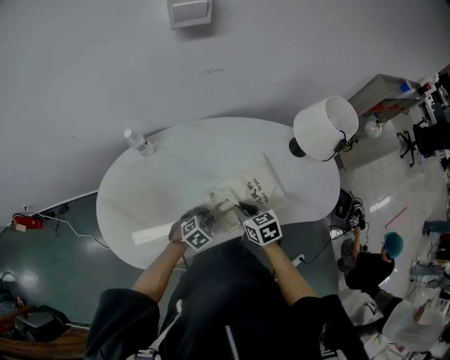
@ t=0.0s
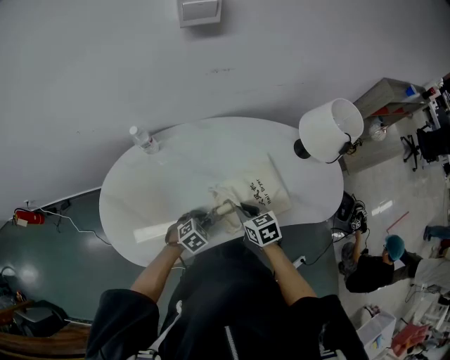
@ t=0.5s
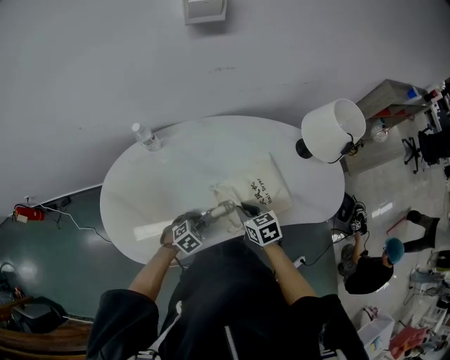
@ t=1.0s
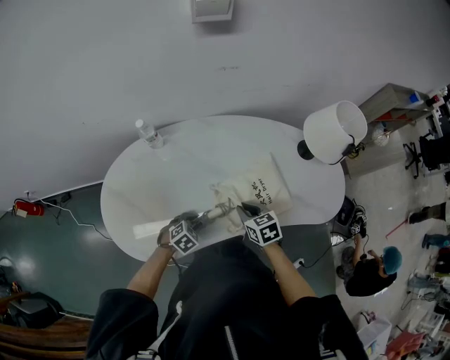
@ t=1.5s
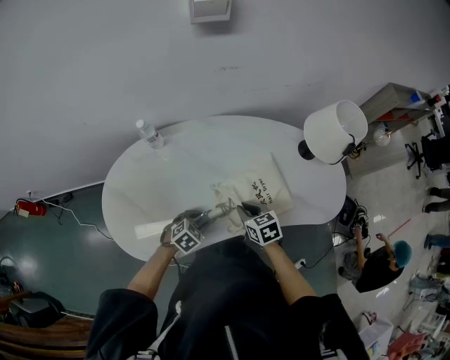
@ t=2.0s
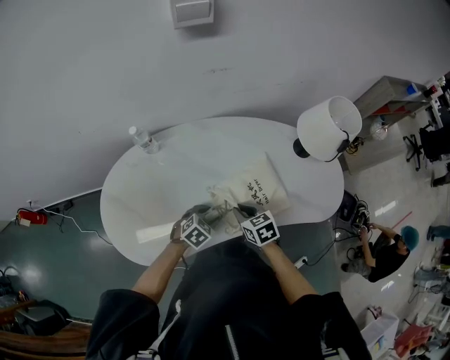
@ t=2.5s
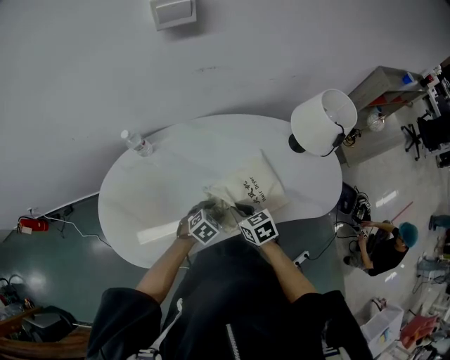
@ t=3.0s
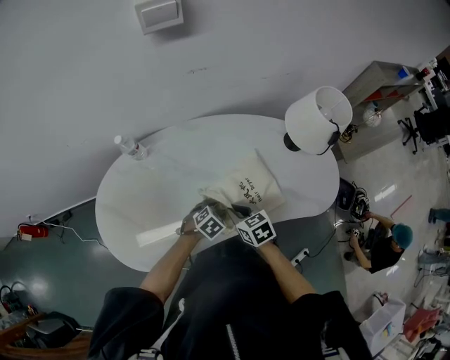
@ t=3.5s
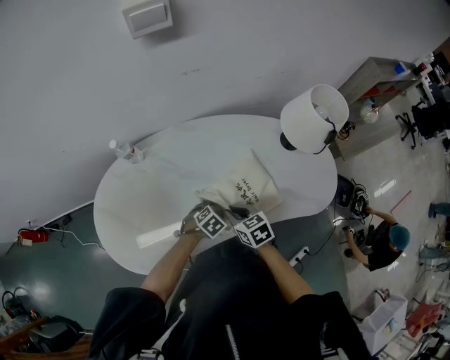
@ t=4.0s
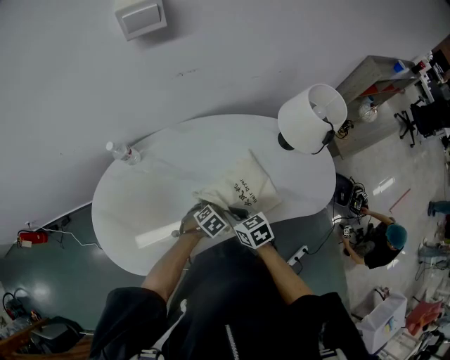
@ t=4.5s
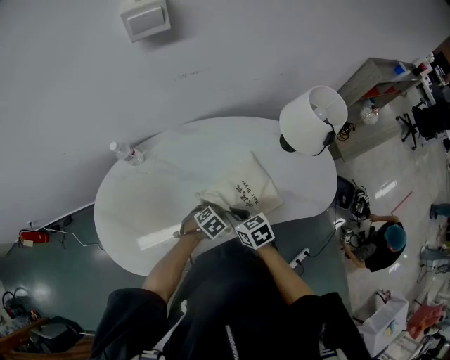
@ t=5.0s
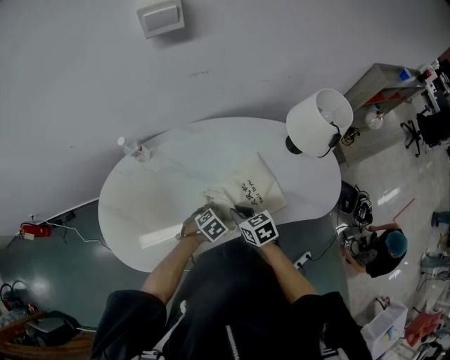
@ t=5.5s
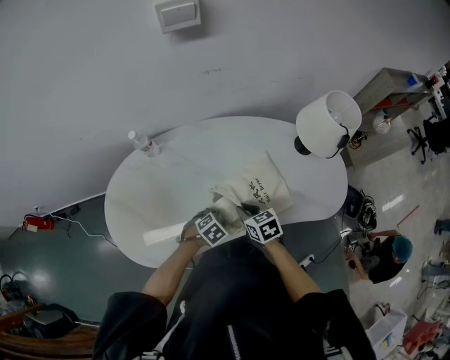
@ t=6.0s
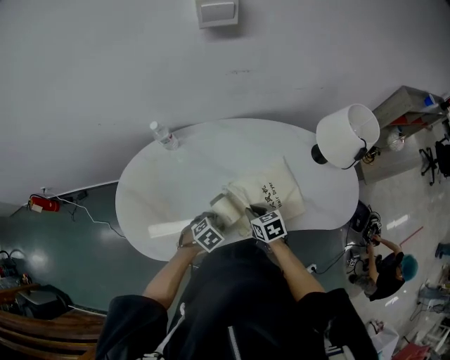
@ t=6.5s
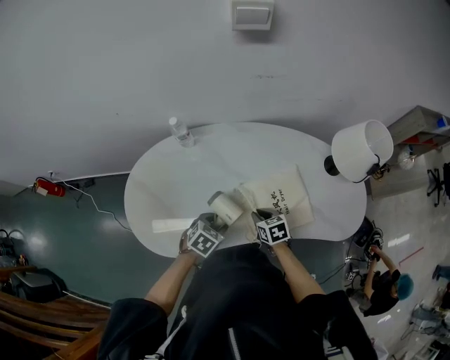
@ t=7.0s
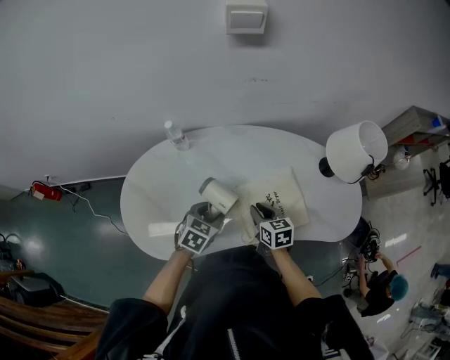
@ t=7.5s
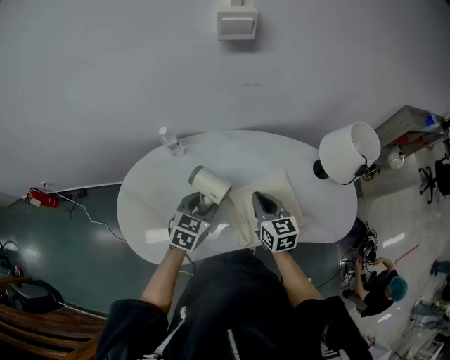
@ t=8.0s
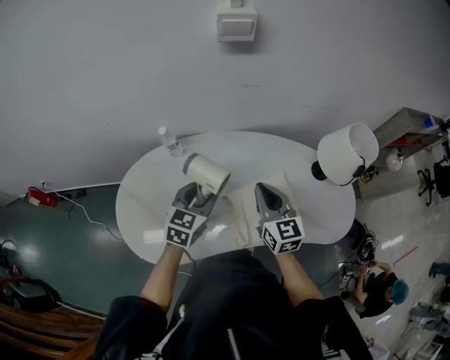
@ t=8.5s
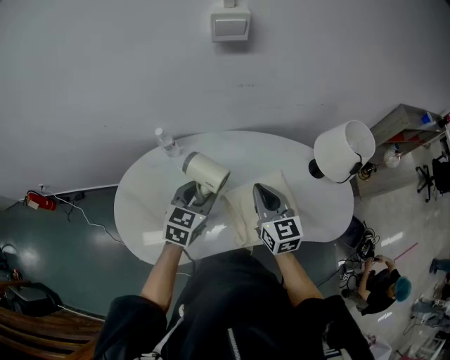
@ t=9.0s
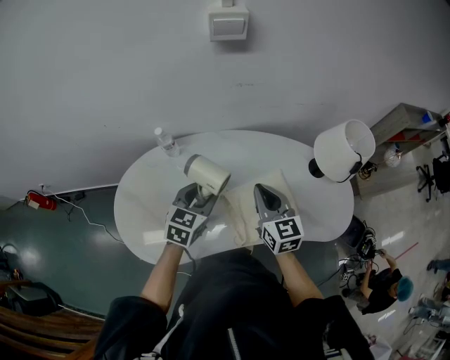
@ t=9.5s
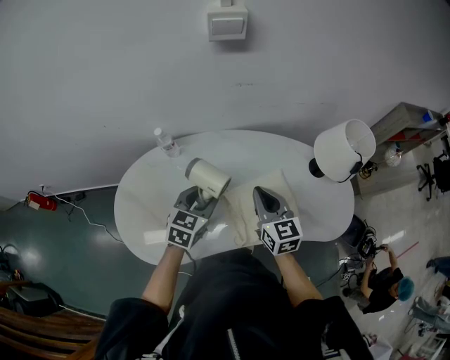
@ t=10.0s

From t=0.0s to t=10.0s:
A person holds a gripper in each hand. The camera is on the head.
From t=0.0s to t=2.0s: The left gripper ends up about 5 cm from where it was.
From t=2.0s to t=4.0s: The left gripper shifts approximately 10 cm to the right and forward.
From t=4.0s to t=6.0s: The left gripper ends up roughly 5 cm from where it was.
From t=6.0s to t=8.0s: The right gripper moves upward and forward, approximately 15 cm, and changes its angle by some 30 degrees. Meanwhile the left gripper heads upward, to the left and forward, covering roughly 20 cm, and points its fingers roughly 30 degrees further upward.
From t=8.0s to t=10.0s: The right gripper shifts some 5 cm upward.

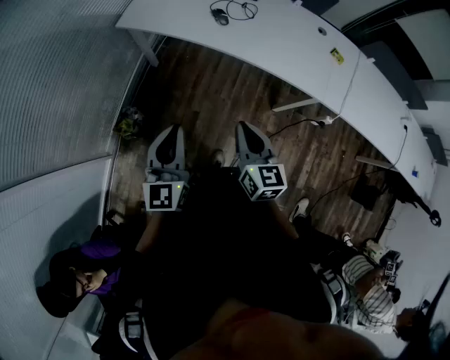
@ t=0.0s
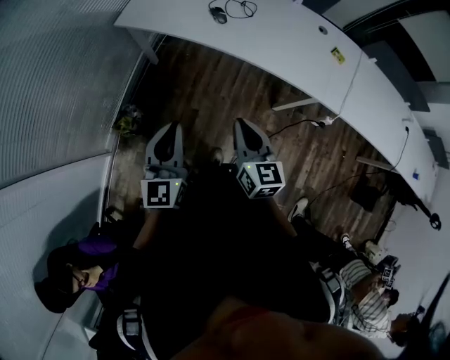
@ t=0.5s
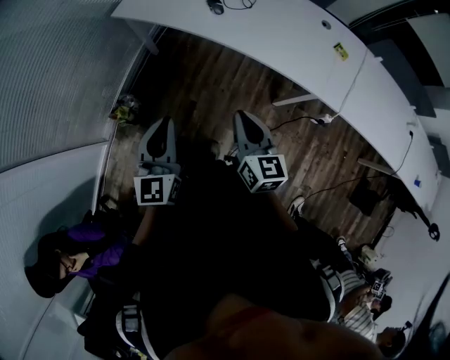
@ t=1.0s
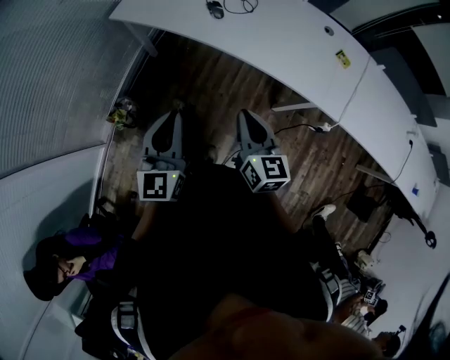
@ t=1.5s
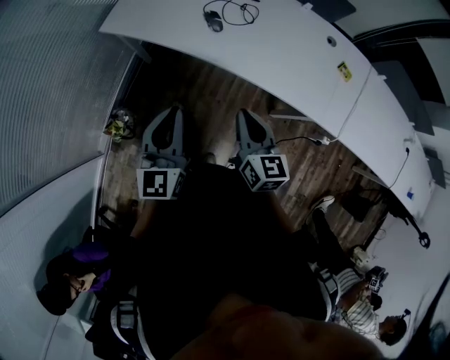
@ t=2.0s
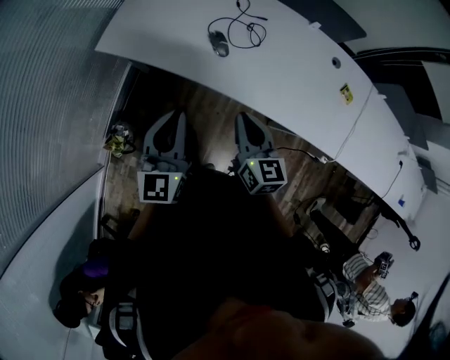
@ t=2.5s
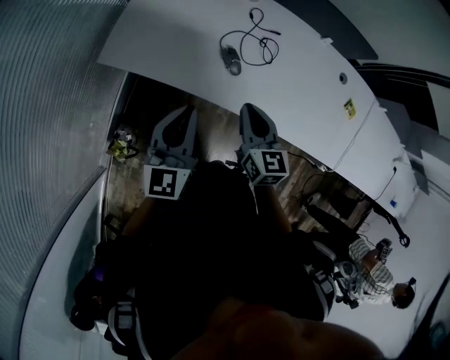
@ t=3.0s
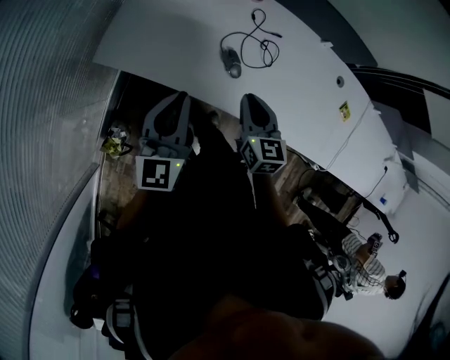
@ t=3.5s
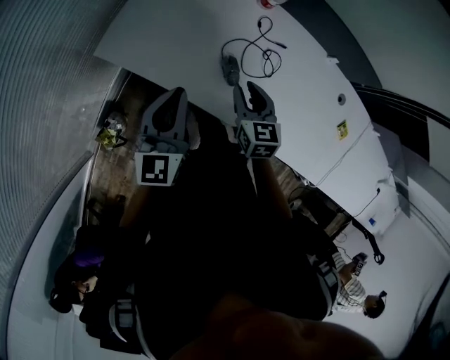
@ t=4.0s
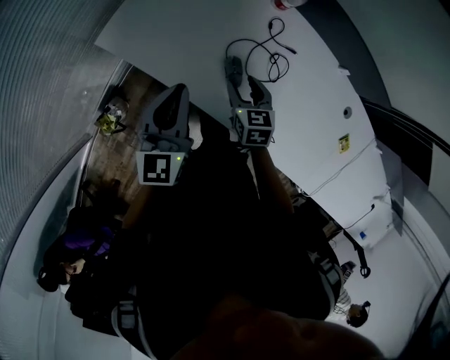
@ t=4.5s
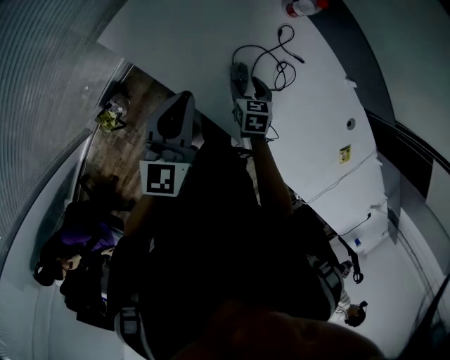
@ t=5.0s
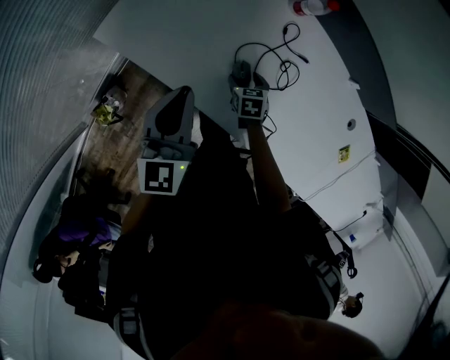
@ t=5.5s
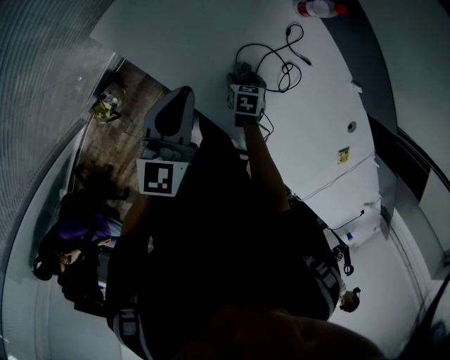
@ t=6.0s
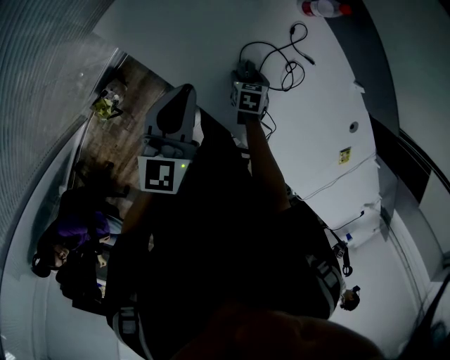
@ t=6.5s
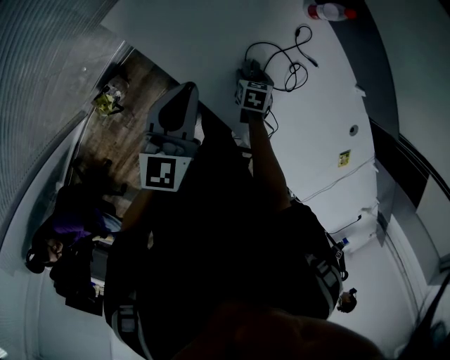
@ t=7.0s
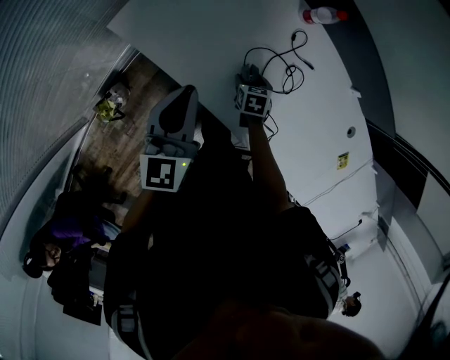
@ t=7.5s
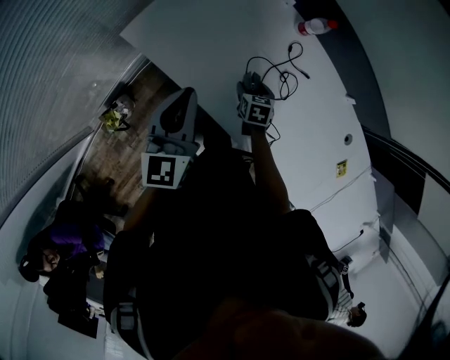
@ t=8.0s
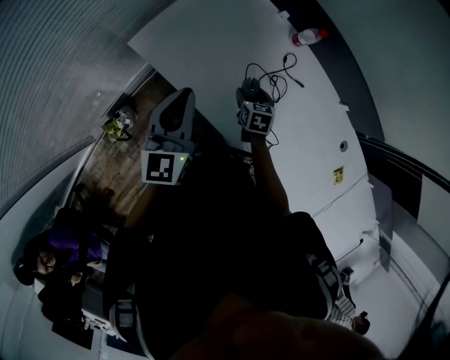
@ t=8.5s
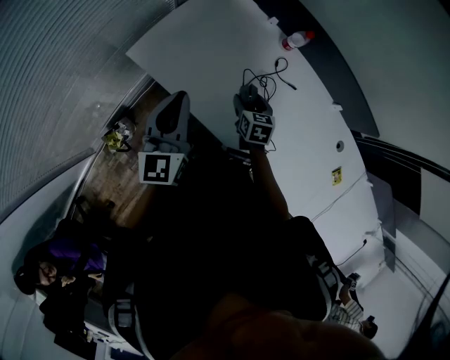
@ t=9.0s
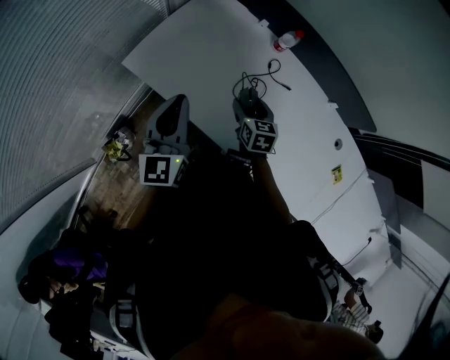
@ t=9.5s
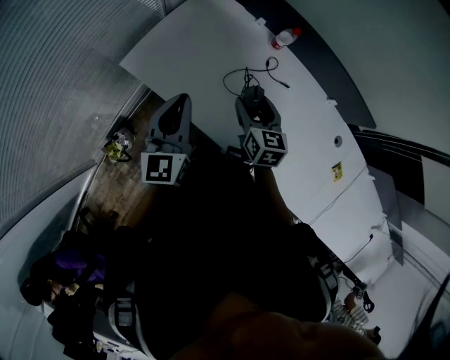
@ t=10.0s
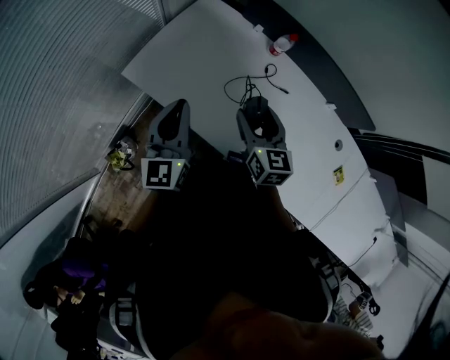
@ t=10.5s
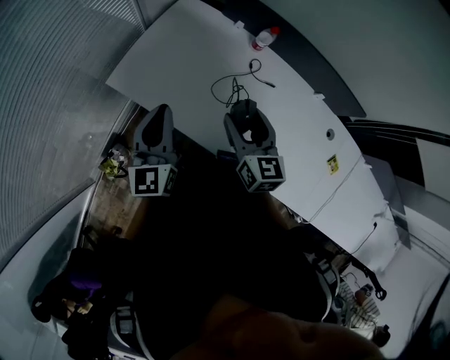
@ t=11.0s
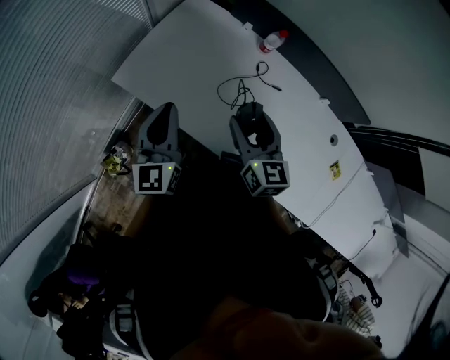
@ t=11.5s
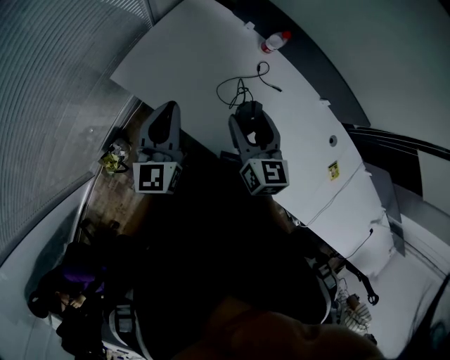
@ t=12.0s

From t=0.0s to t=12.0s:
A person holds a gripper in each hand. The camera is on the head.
From t=0.0s to t=2.0s: Both grippers move forward and to the right, about 20 cm.
From t=2.0s to t=4.0s: Both grippers move forward, approximately 35 cm. The right gripper turns by about 20 degrees, and opens its fingers.
From t=4.0s to t=6.0s: The left gripper travels forward and downward by roughly 10 cm; the right gripper shifts roughly 25 cm downward, tips its fingers downward by about 30 degrees, and opens up.
From t=6.0s to t=8.0s: The grippers both shift upward by roughly 5 cm.
From t=8.0s to t=10.0s: The left gripper heads upward, covering roughly 5 cm. Meanwhile the right gripper shifts roughly 25 cm upward, and rotates roughly 30 degrees.
From t=10.0s to t=12.0s: The right gripper goes roughly 5 cm upward.

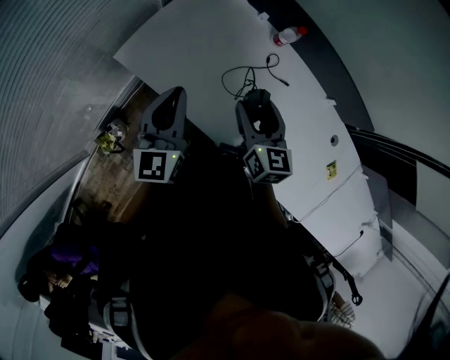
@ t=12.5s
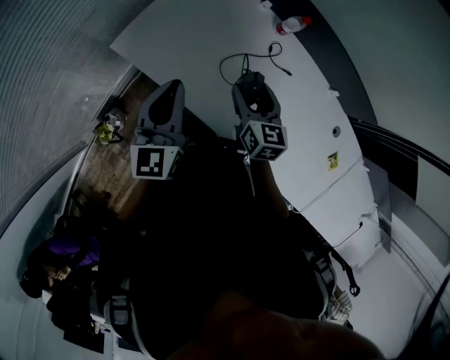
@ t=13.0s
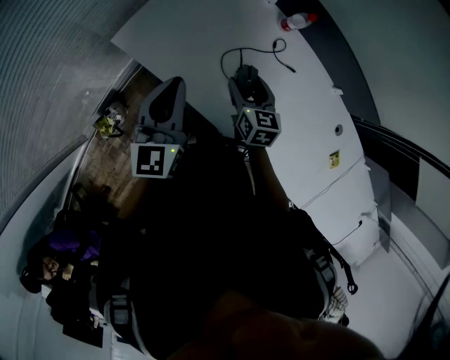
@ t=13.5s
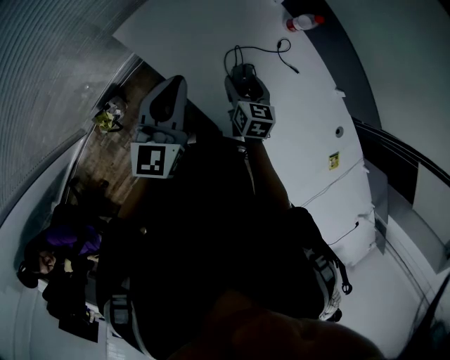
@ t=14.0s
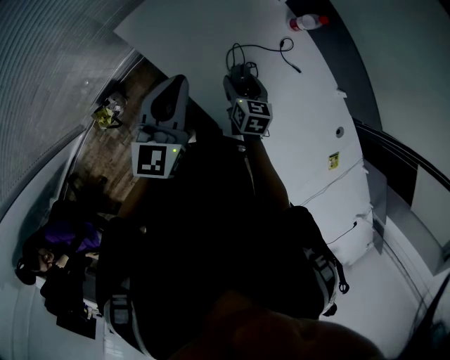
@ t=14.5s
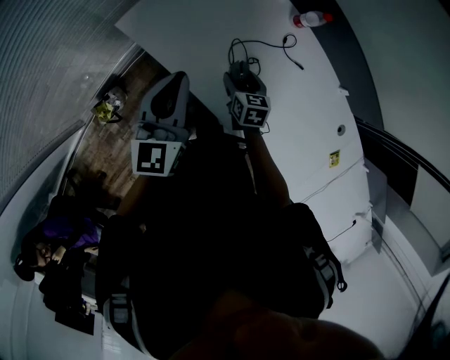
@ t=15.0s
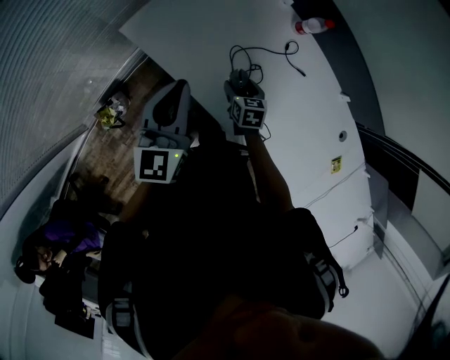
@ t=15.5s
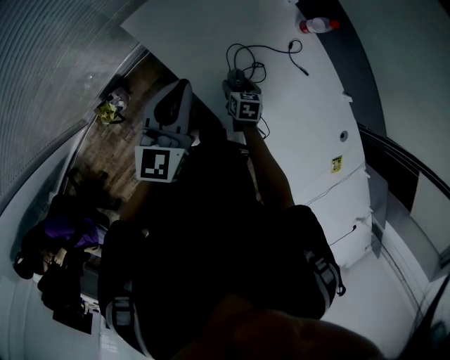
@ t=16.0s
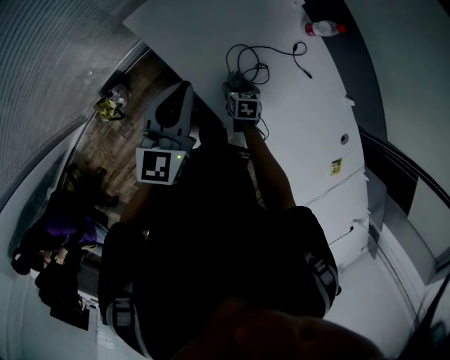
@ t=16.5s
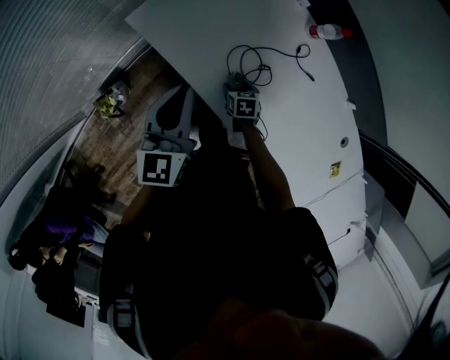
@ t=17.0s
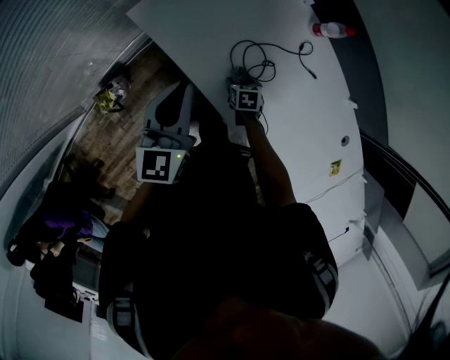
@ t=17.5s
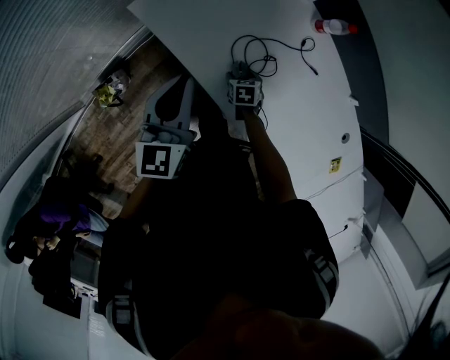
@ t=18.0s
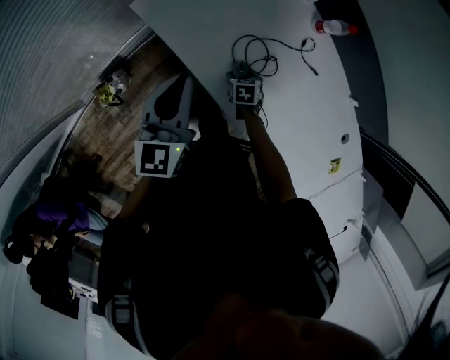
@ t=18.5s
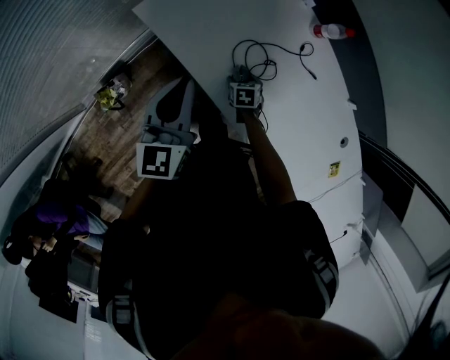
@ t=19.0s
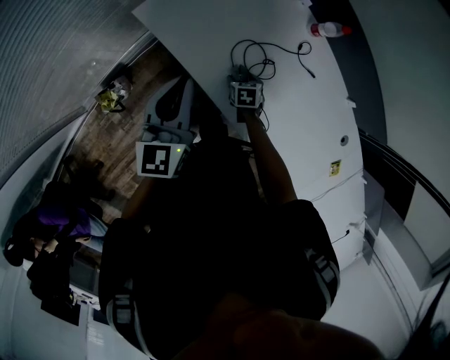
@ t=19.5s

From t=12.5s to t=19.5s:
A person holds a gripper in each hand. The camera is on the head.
From t=12.5s to t=14.5s: The right gripper moves downward, about 20 cm, and turns by approximately 20 degrees.
From t=14.5s to t=16.0s: The right gripper goes approximately 10 cm downward.
From t=16.0s to t=17.5s: The right gripper moves downward, some 5 cm.
From t=17.5s to t=19.5s: The grippers make only small movements.
